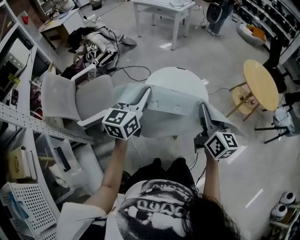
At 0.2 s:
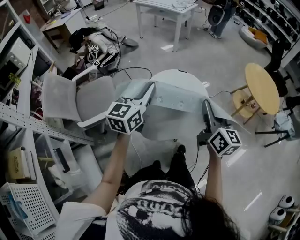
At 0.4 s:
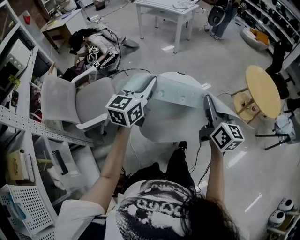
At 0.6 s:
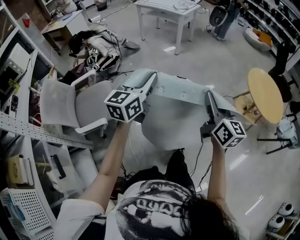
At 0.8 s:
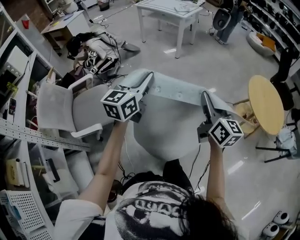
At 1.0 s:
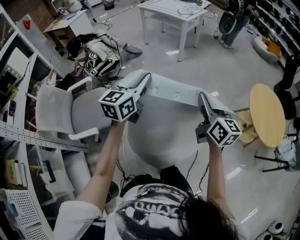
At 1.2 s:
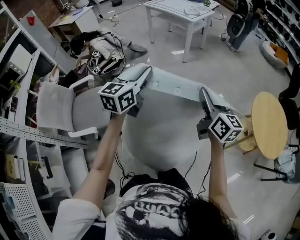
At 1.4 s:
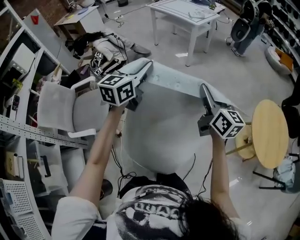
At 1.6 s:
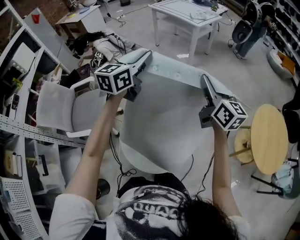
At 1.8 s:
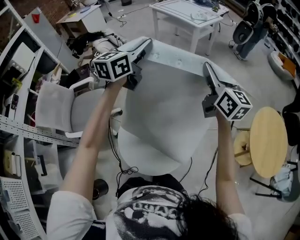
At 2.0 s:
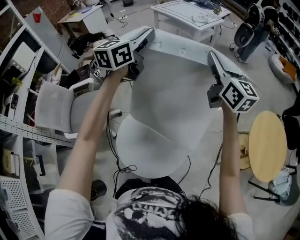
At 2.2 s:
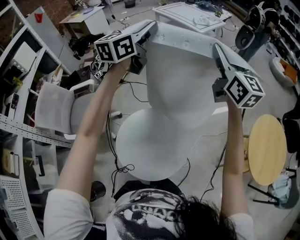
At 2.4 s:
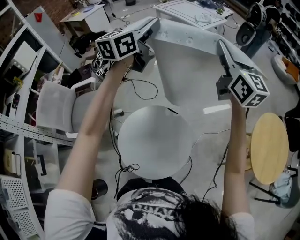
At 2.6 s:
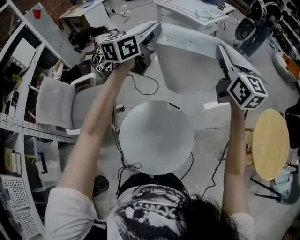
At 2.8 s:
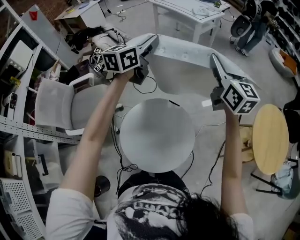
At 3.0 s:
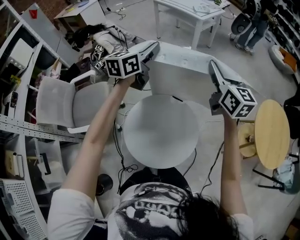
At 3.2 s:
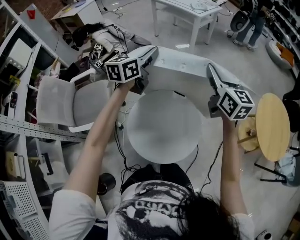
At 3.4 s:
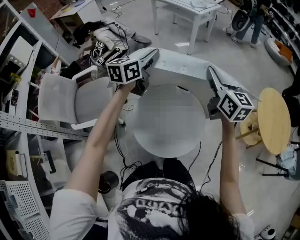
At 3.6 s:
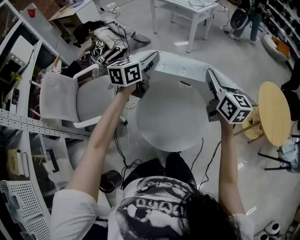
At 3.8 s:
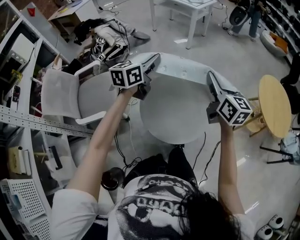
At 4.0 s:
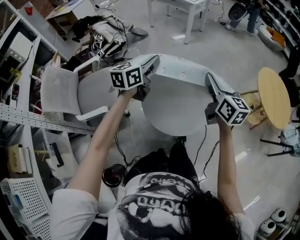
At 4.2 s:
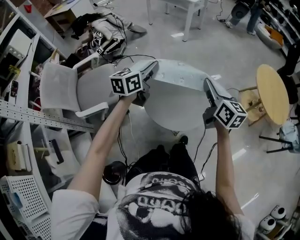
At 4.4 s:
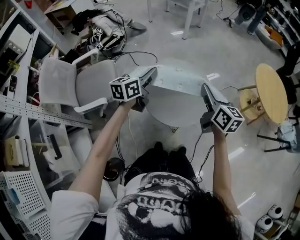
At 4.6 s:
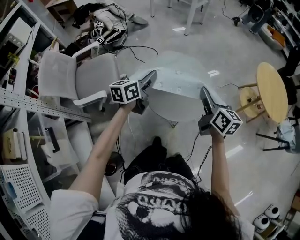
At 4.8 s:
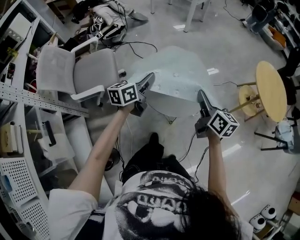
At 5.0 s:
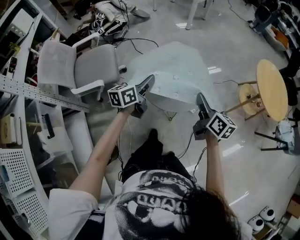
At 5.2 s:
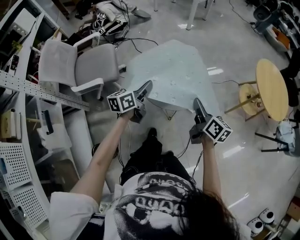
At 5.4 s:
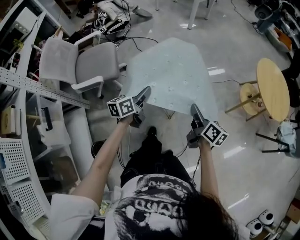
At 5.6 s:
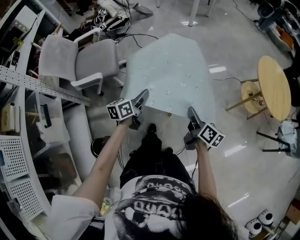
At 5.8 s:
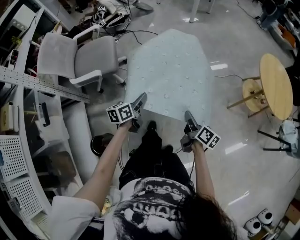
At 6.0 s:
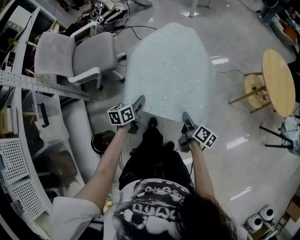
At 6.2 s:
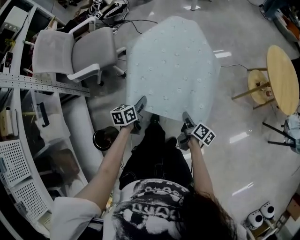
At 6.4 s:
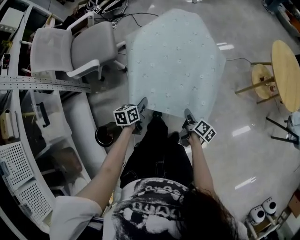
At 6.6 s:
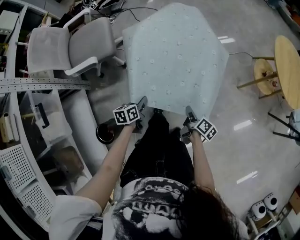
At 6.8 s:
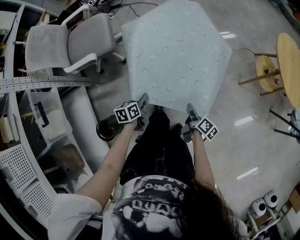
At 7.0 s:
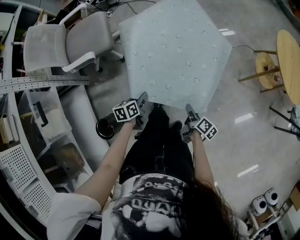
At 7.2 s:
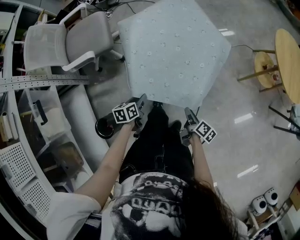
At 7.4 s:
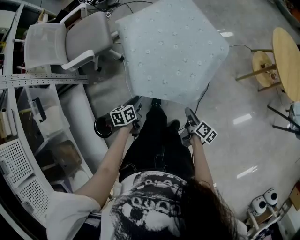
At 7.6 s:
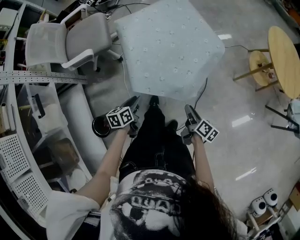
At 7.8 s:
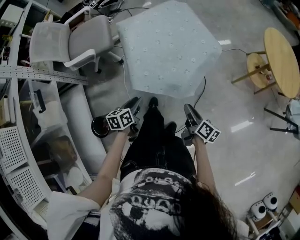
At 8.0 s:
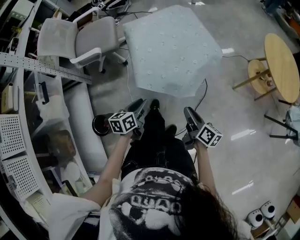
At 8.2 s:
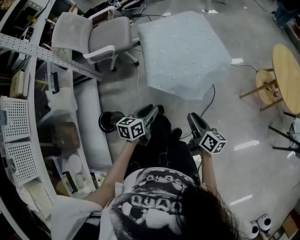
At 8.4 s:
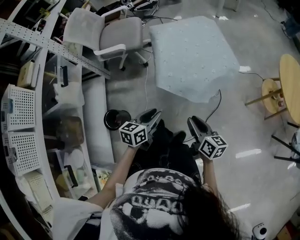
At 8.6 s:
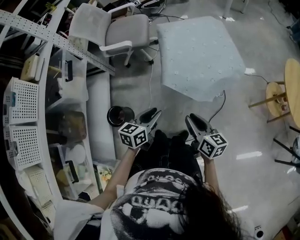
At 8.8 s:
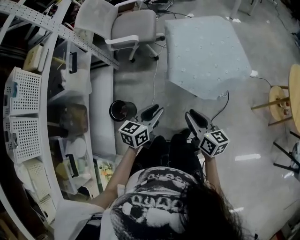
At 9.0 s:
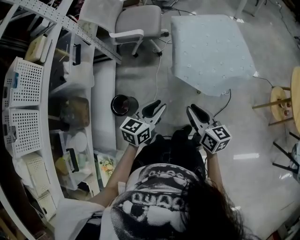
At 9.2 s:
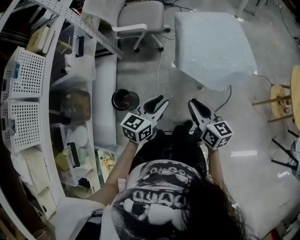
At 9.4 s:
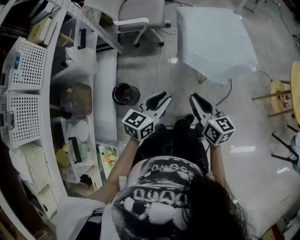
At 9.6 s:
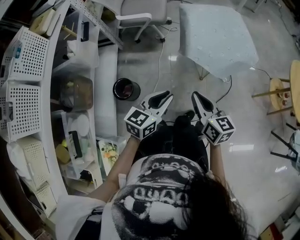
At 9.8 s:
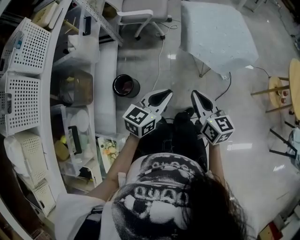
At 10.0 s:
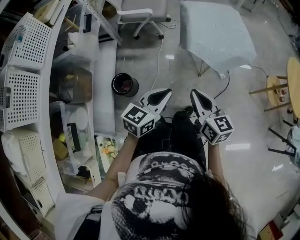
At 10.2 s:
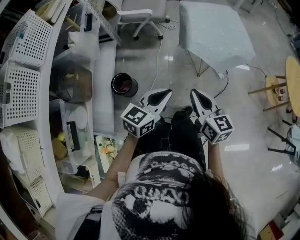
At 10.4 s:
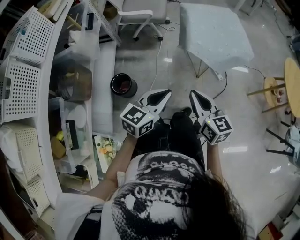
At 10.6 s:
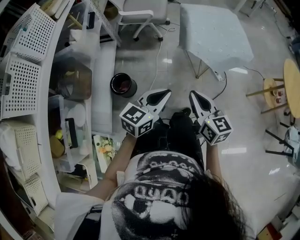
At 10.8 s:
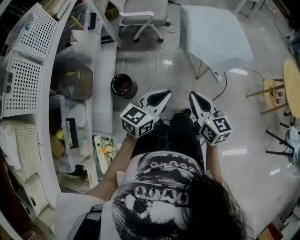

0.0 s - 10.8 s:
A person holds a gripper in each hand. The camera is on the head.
0.0 s - 1.6 s: The pair of grippers is taken forward, about 40 cm.
1.6 s - 3.0 s: The right gripper moves roughly 15 cm upward and comes back, while the left gripper moves some 10 cm upward and comes back.
3.0 s - 4.6 s: The two grippers go about 40 cm backward and downward. The right gripper turns by some 20 degrees.
4.6 s - 6.2 s: The grippers both shift downward and backward by roughly 30 cm. The right gripper rolls clockwise, seen from behind, by roughly 40 degrees. The left gripper swivels some 30 degrees.
6.2 s - 7.8 s: The right gripper goes roughly 5 cm backward, and opens up, while the left gripper shifts roughly 10 cm backward.
7.8 s - 9.2 s: The left gripper travels upward and backward by some 20 cm, and turns by roughly 30 degrees, while the right gripper moves to the left and upward, roughly 25 cm, and rotates around the line of its fingers by about 40 degrees, counterclockwise from behind.
9.2 s - 10.8 s: The right gripper heads backward and to the left, covering some 15 cm. Meanwhile the left gripper travels backward by approximately 15 cm, and closes up.

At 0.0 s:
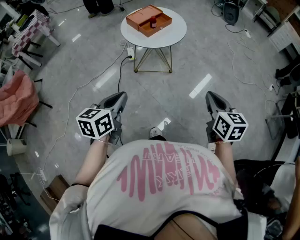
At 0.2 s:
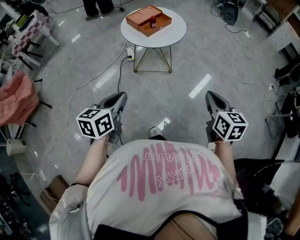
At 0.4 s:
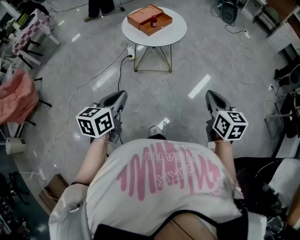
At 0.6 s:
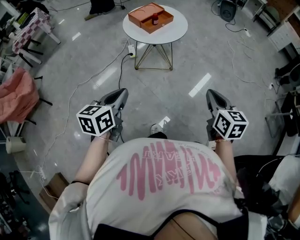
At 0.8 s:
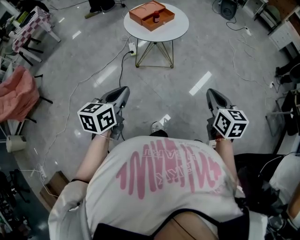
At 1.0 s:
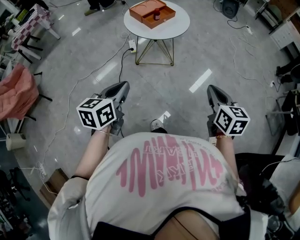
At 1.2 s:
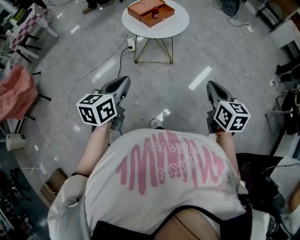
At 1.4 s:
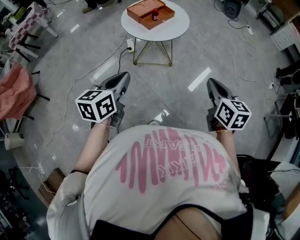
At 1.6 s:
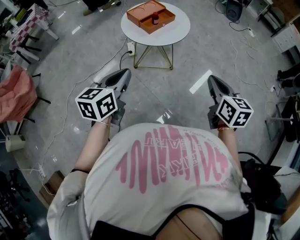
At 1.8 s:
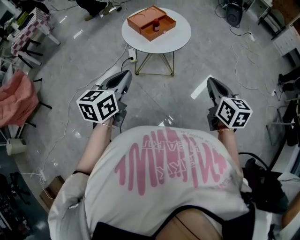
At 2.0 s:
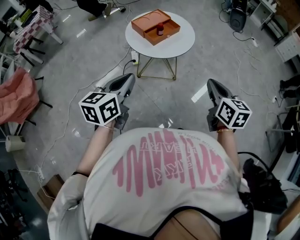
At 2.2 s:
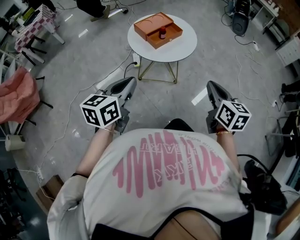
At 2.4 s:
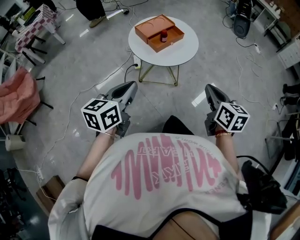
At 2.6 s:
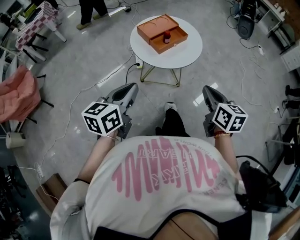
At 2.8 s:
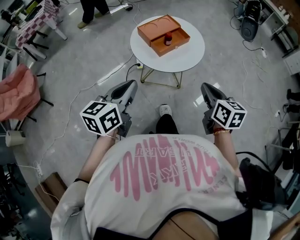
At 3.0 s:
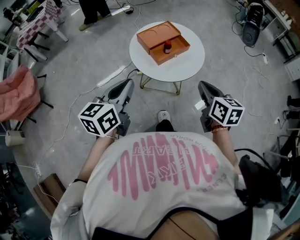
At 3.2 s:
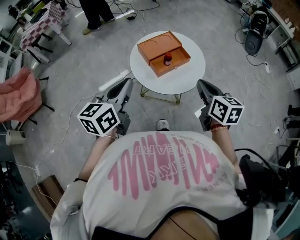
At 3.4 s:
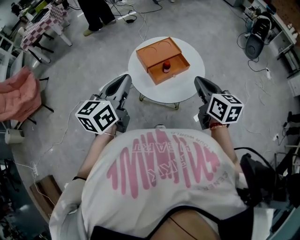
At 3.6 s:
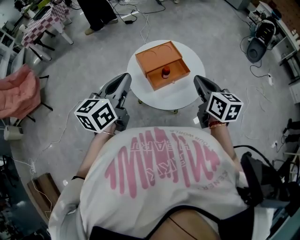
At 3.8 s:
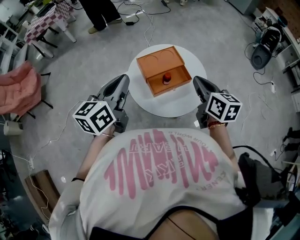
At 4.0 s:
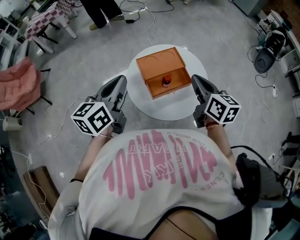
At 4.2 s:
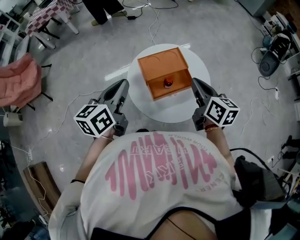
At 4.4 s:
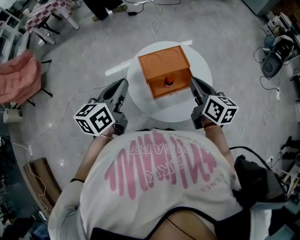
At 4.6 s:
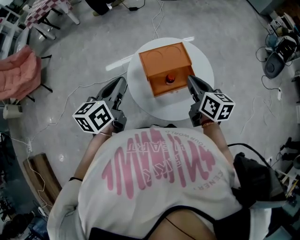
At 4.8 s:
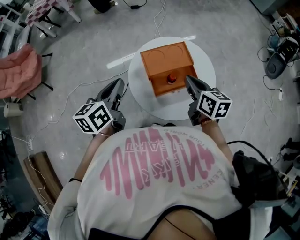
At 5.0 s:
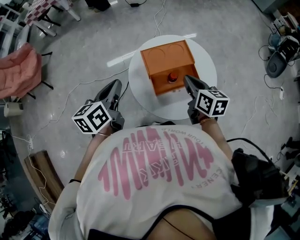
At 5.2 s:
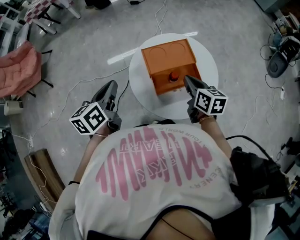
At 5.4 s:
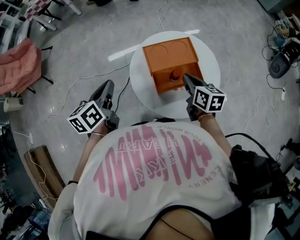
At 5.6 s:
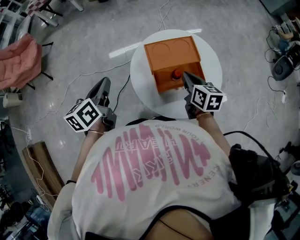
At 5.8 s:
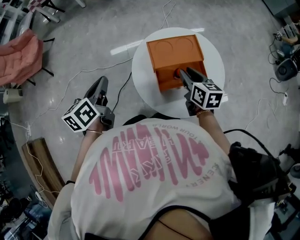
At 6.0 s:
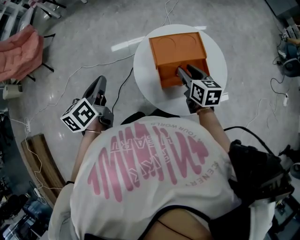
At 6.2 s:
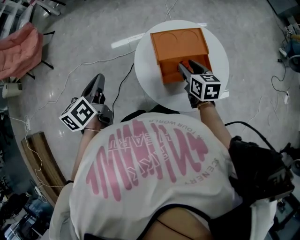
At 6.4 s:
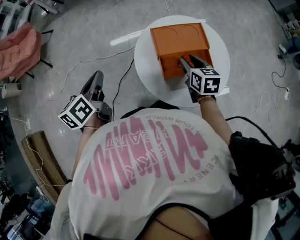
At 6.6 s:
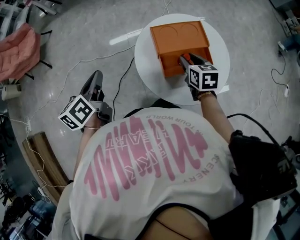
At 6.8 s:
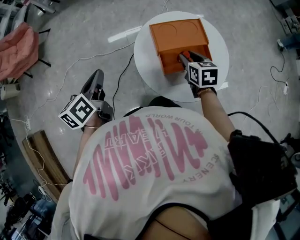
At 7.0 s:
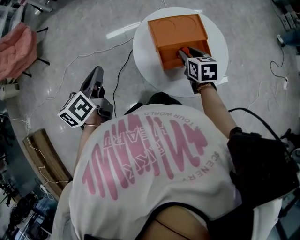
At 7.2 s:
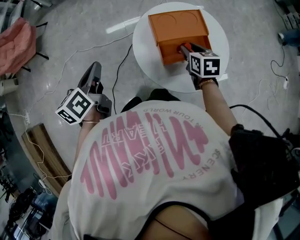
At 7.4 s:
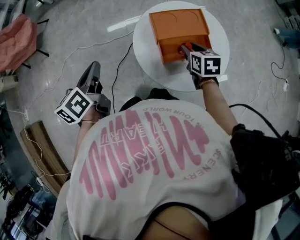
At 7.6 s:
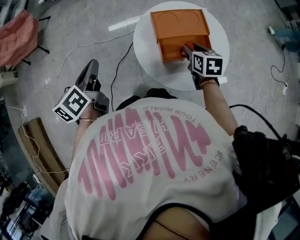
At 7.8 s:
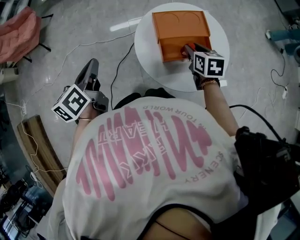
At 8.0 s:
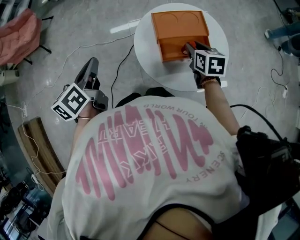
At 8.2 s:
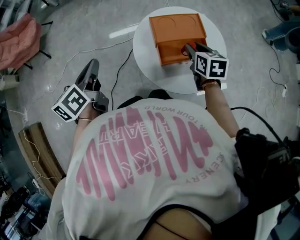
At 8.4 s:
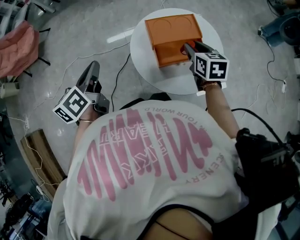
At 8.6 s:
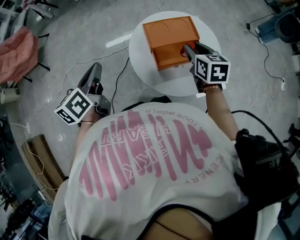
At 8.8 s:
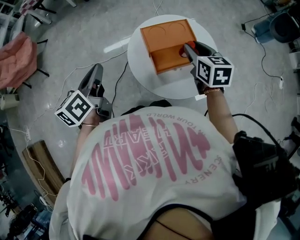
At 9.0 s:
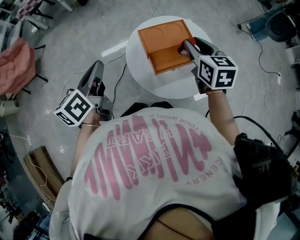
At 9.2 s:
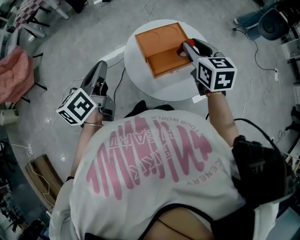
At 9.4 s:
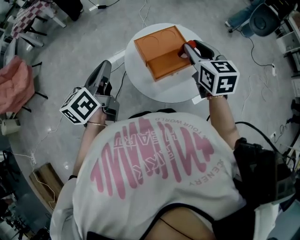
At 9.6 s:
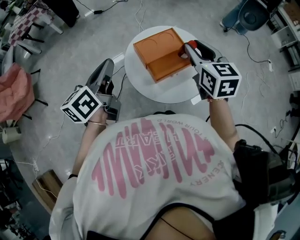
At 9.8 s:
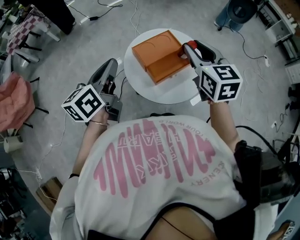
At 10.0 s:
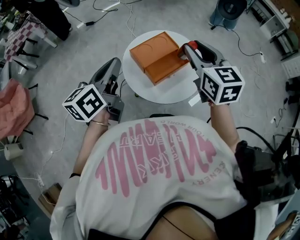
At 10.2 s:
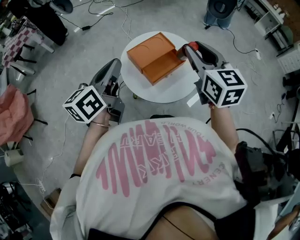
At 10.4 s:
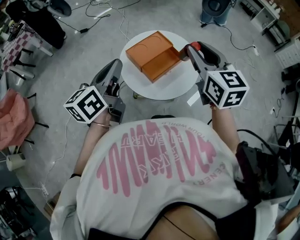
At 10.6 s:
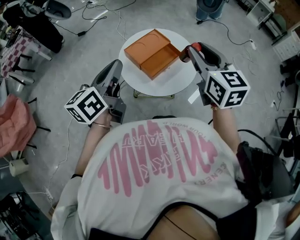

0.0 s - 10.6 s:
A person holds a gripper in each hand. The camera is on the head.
0.0 s - 1.6 s: Both grippers move forward, approximately 10 cm.
1.6 s - 3.0 s: Both grippers move forward, some 20 cm.
3.0 s - 4.6 s: The grippers both shift forward by about 30 cm. The left gripper turns by roughly 20 degrees.
4.6 s - 6.0 s: The right gripper travels downward and to the left by about 10 cm, and opens its fingers; the left gripper moves to the left and downward, about 15 cm.
6.0 s - 7.6 s: There are only small adjustments of the grippers.
7.6 s - 9.0 s: The right gripper moves upward, approximately 15 cm, and changes its angle by approximately 20 degrees. Meanwhile the left gripper shifts approximately 5 cm upward.
9.0 s - 10.6 s: The left gripper travels upward by about 10 cm, and swivels roughly 30 degrees; the right gripper is displaced upward by approximately 15 cm, and turns by approximately 30 degrees.

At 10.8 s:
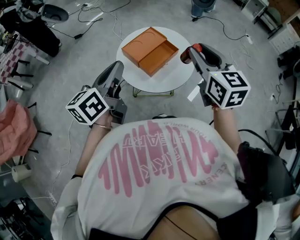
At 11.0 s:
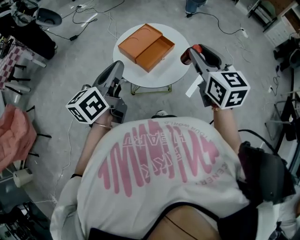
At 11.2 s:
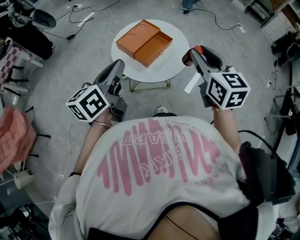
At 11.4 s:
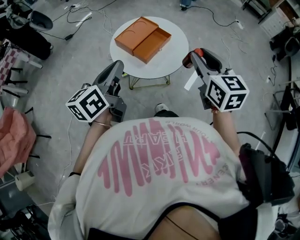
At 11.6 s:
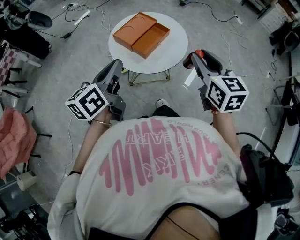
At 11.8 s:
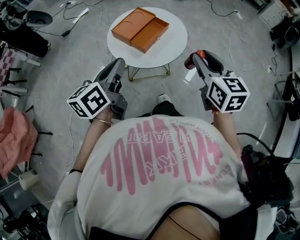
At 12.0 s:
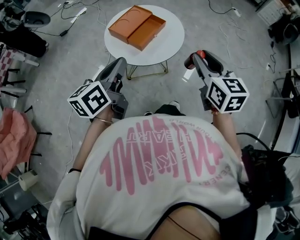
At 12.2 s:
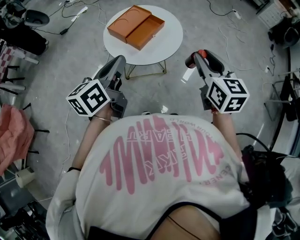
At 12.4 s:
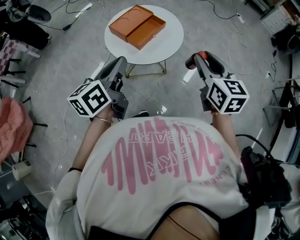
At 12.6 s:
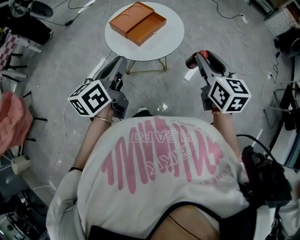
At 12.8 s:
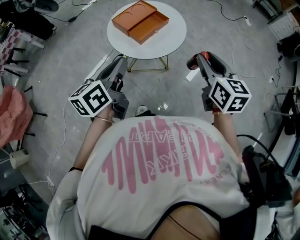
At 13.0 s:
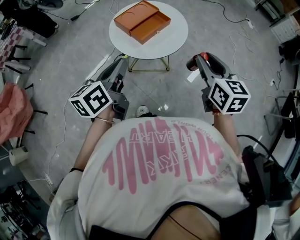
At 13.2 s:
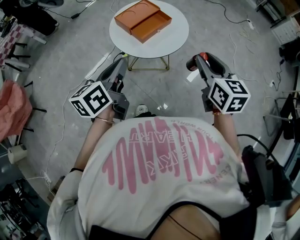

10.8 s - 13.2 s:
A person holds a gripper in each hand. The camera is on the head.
10.8 s - 12.0 s: The left gripper moves backward and downward, roughly 10 cm, while the right gripper is displaced backward, downward and to the right by about 20 cm.
12.0 s - 13.2 s: The left gripper moves some 5 cm.
